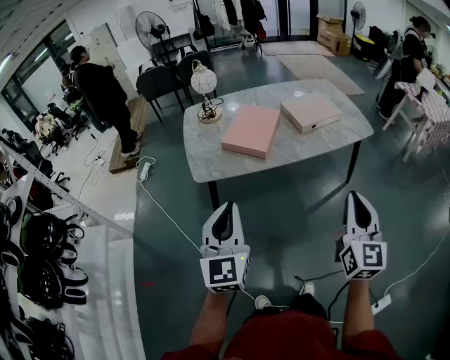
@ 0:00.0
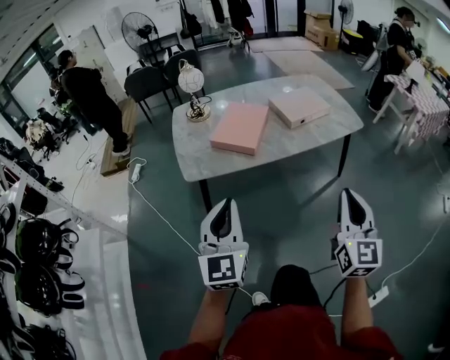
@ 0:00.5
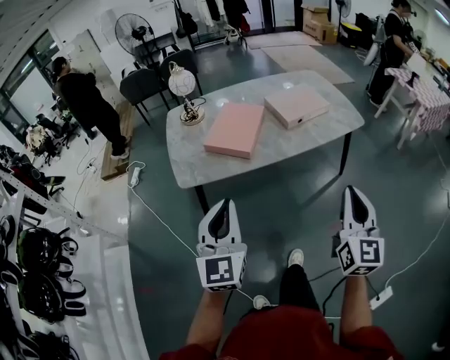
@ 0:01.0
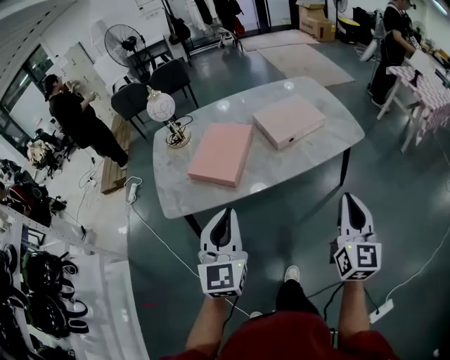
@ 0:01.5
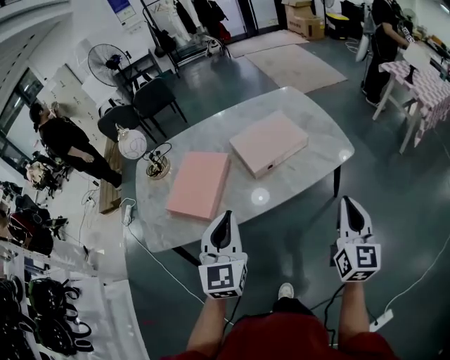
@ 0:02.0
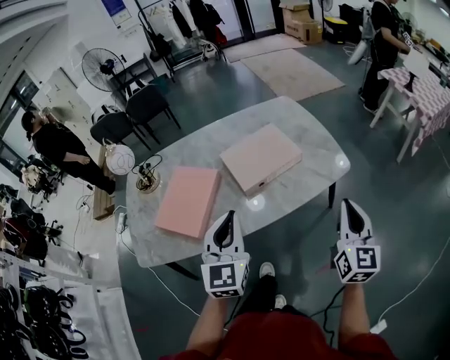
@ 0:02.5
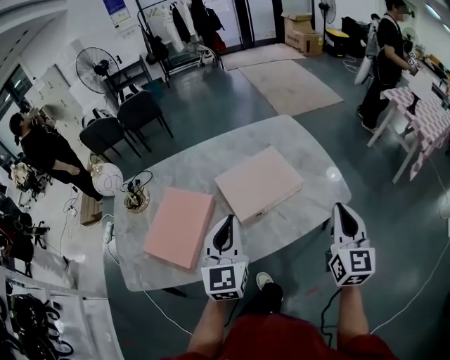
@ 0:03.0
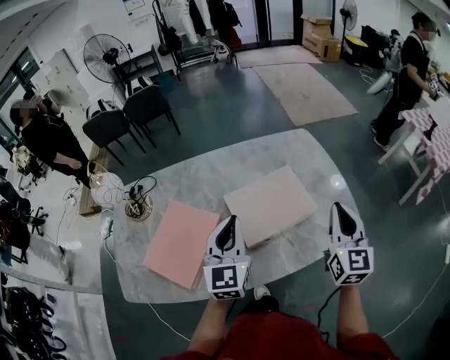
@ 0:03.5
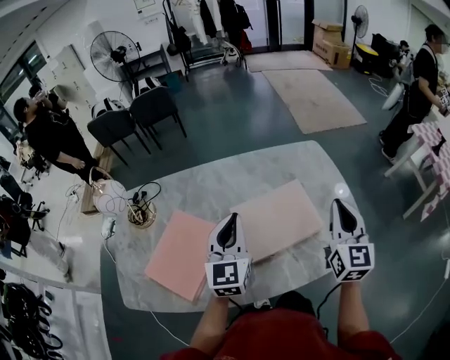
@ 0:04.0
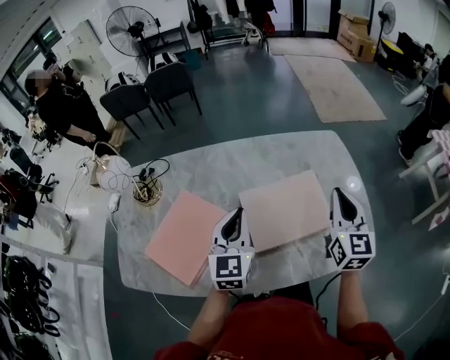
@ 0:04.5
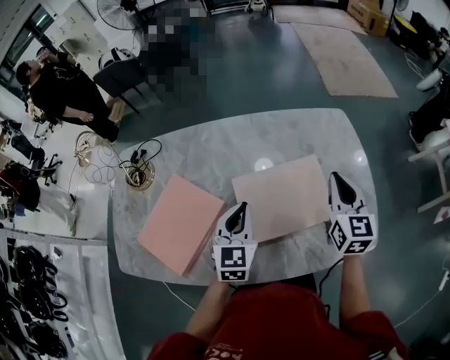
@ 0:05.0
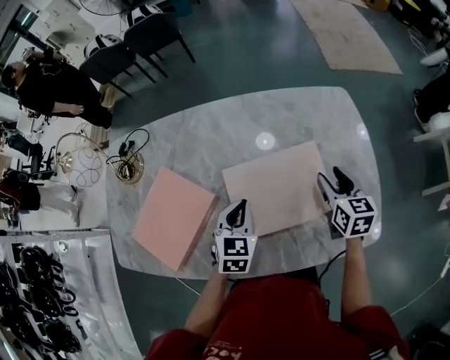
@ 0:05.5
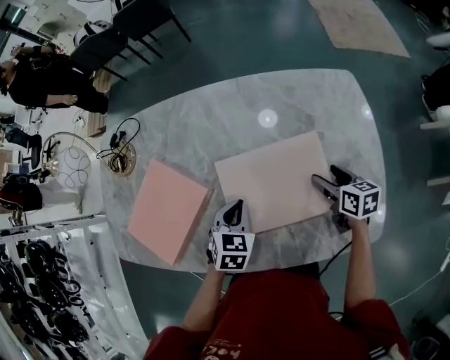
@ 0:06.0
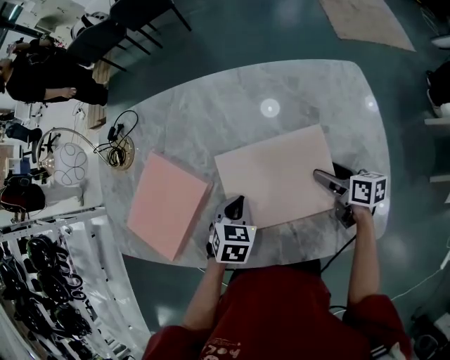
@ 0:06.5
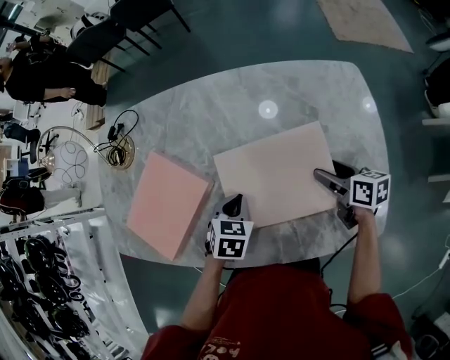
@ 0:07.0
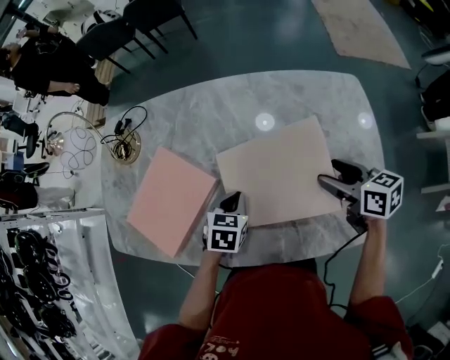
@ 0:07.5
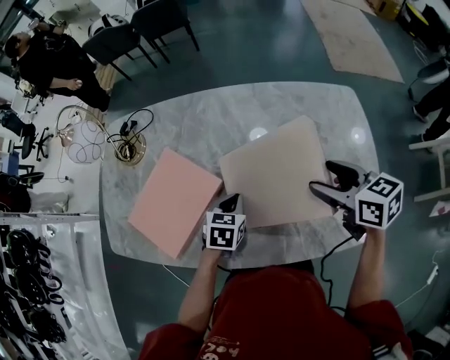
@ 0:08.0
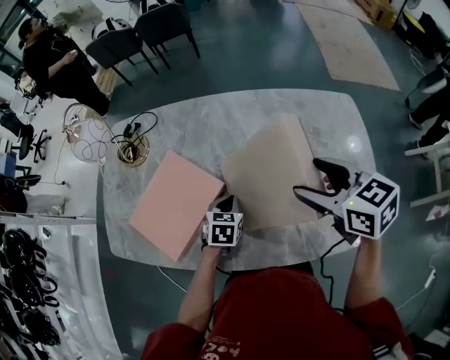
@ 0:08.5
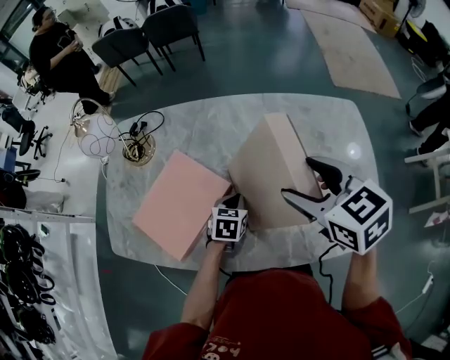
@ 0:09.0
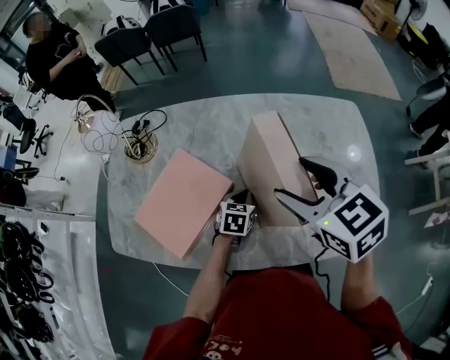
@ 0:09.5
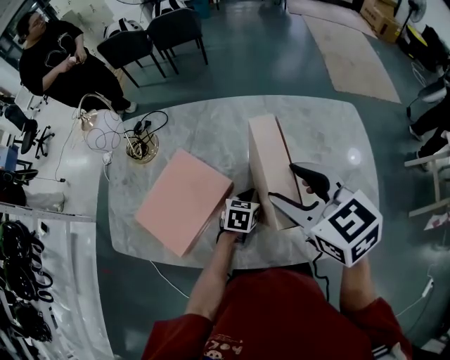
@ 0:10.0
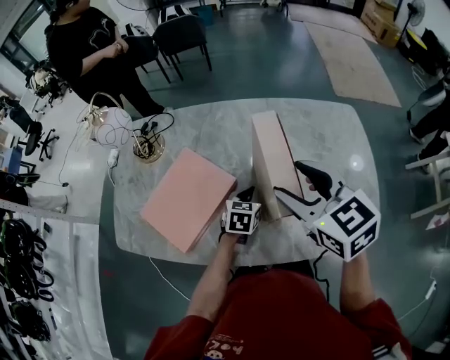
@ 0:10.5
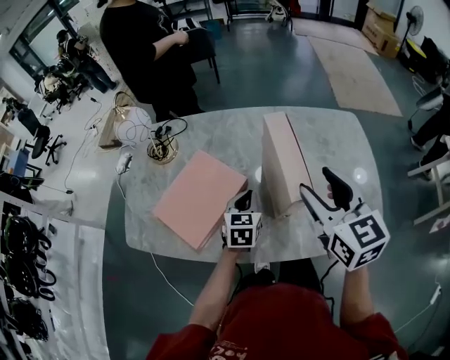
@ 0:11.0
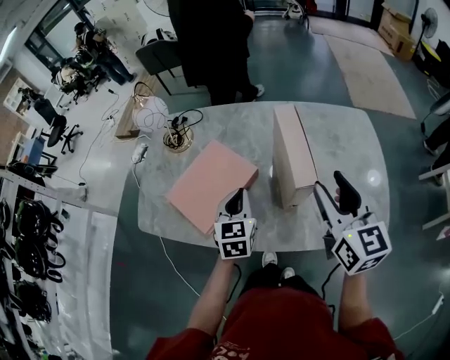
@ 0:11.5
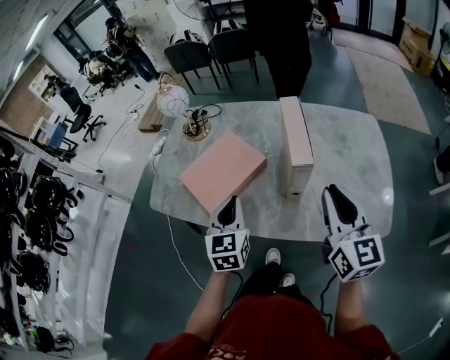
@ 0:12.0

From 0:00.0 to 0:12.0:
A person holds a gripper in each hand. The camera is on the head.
From 0:00.0 to 0:02.0: Both grippers move forward and to the right, roughly 40 cm.
From 0:02.0 to 0:04.0: Both grippers move forward, some 40 cm.
From 0:04.0 to 0:06.0: The right gripper is displaced downward and forward by some 35 cm, points its fingers roughly 40 degrees further downward, and opens its fingers; the left gripper shifts roughly 25 cm downward, and points its fingers roughly 50 degrees further downward.
From 0:06.0 to 0:08.0: The left gripper heads to the left, covering approximately 5 cm, while the right gripper shifts about 20 cm upward and to the left, and changes its angle by some 20 degrees.
From 0:08.0 to 0:10.0: The right gripper goes some 20 cm to the left and upward, and turns by about 20 degrees.
From 0:10.0 to 0:12.0: The right gripper heads backward, covering some 20 cm, swivels roughly 30 degrees, and closes; the left gripper travels upward, backward and to the left by roughly 35 cm, and swivels some 40 degrees.

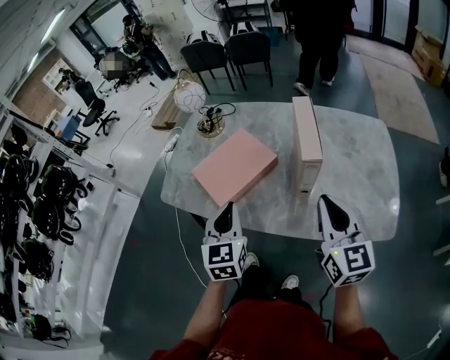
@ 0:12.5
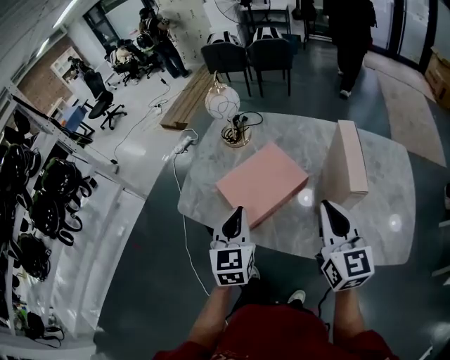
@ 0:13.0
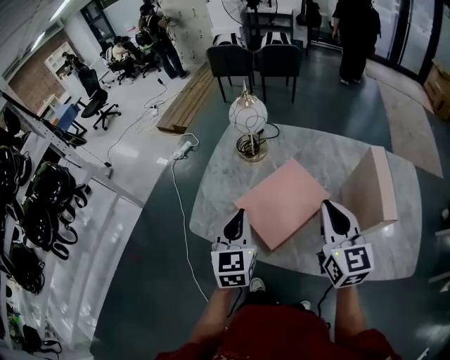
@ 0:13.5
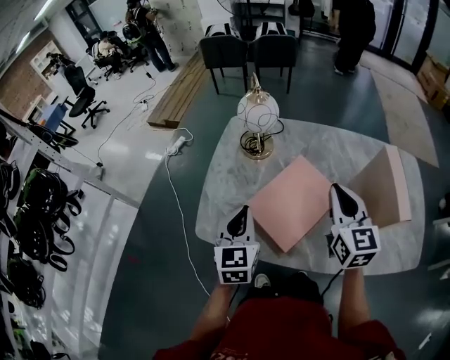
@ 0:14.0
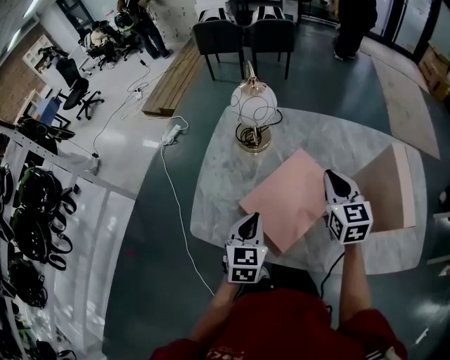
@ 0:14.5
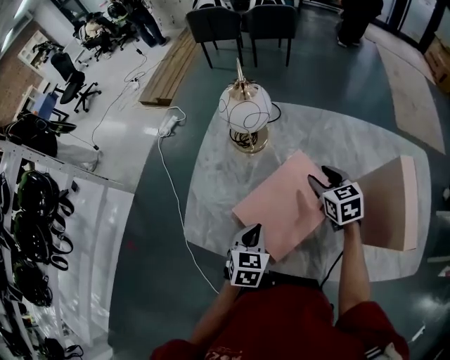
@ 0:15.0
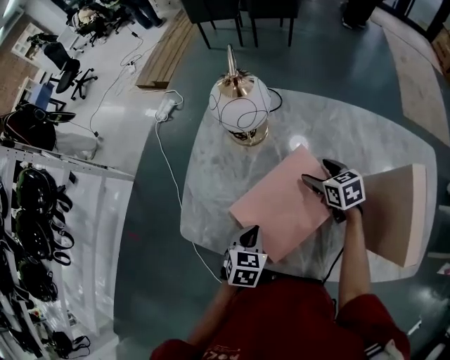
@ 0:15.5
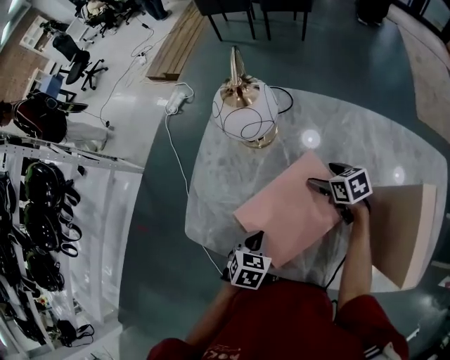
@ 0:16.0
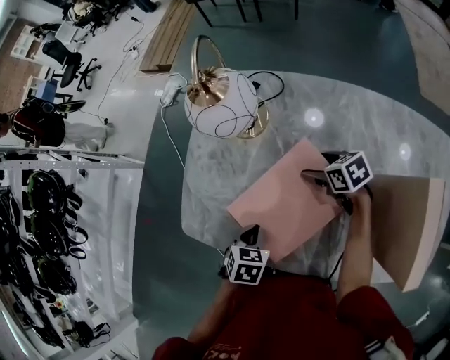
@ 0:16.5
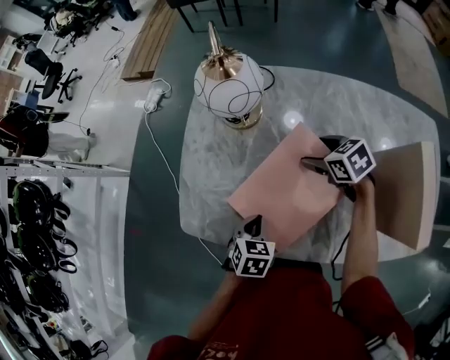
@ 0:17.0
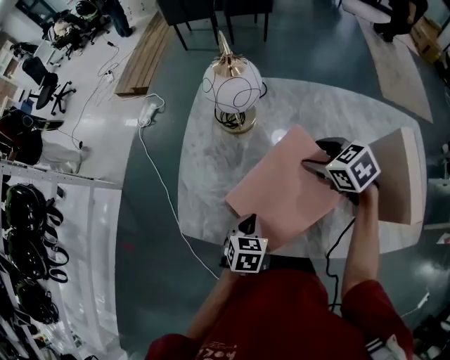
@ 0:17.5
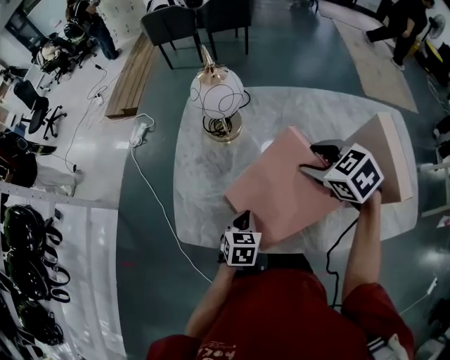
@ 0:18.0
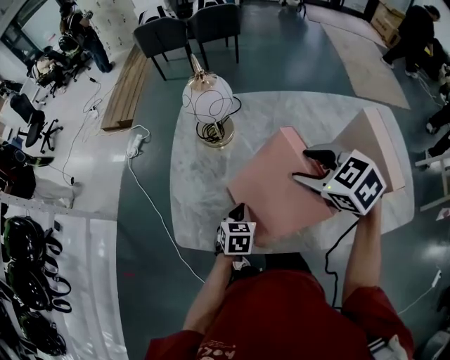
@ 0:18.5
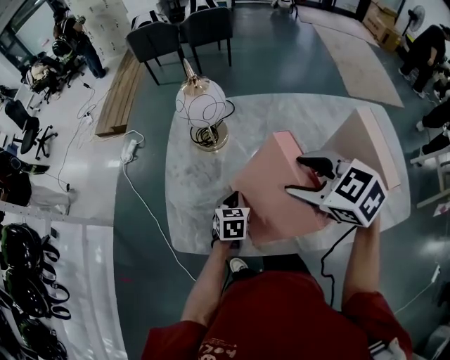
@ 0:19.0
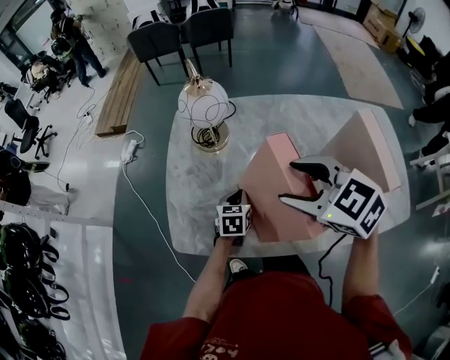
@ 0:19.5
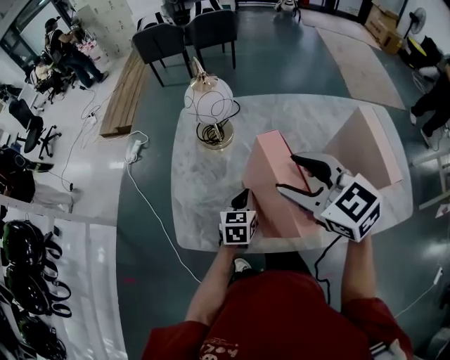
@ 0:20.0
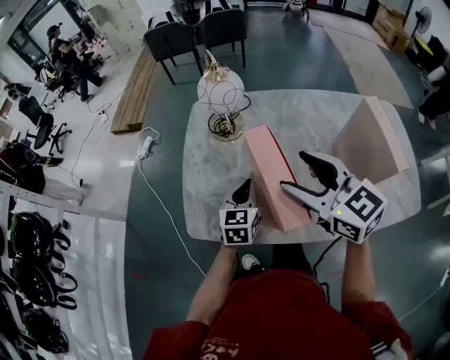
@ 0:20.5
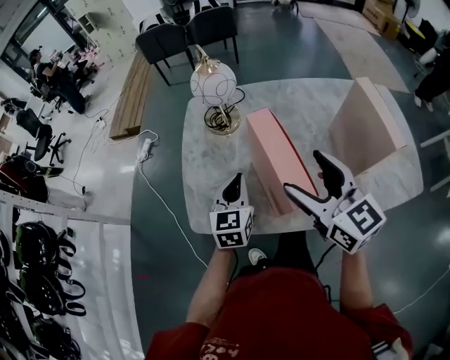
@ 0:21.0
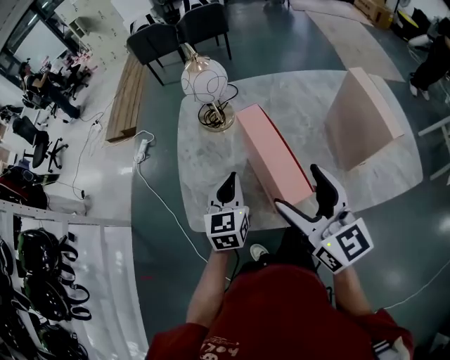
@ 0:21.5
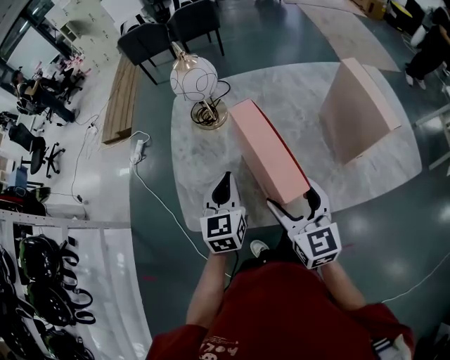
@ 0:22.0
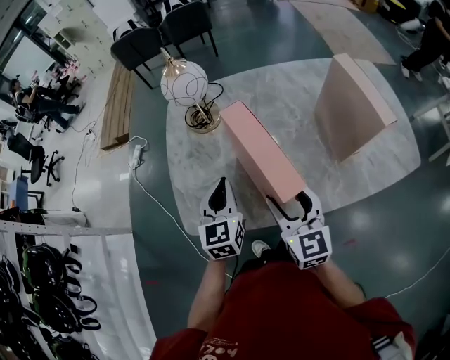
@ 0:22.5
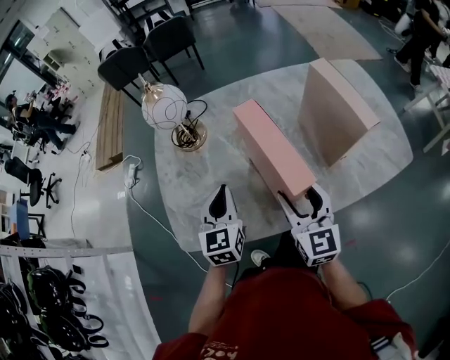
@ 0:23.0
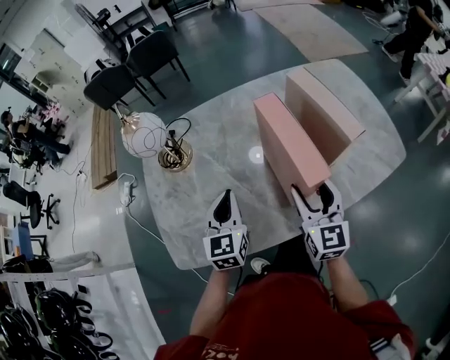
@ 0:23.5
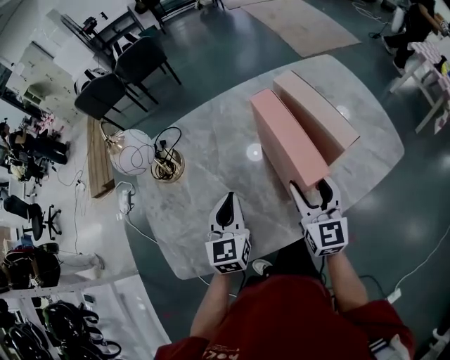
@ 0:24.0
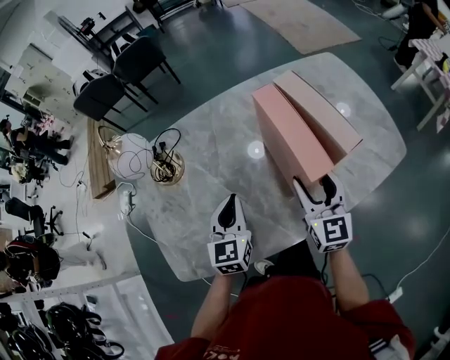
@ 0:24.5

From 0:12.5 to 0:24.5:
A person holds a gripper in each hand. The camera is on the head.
From 0:12.5 to 0:14.5: The left gripper is displaced forward, to the left and downward by some 30 cm. Meanwhile the right gripper moves forward and to the left, approximately 40 cm, and swivels about 20 degrees.
From 0:14.5 to 0:16.5: The left gripper shifts about 15 cm downward, and points its fingers approximately 40 degrees further downward. Meanwhile the right gripper moves downward and forward, approximately 25 cm, turns by roughly 50 degrees, and opens up.
From 0:16.5 to 0:18.5: The right gripper shifts some 30 cm upward and backward, and rotates approximately 30 degrees; the left gripper changes its angle by roughly 20 degrees.
From 0:18.5 to 0:20.5: The right gripper is displaced to the left, upward and backward by approximately 10 cm, and angles its fingers upward, by roughly 30 degrees. The left gripper goes some 10 cm upward, and swivels some 20 degrees.
From 0:20.5 to 0:22.5: The right gripper travels downward and backward by some 15 cm, and rotates some 30 degrees. The left gripper moves some 5 cm.
From 0:22.5 to 0:24.5: Both grippers travel together to the right and forward, approximately 20 cm. The right gripper turns by about 20 degrees.

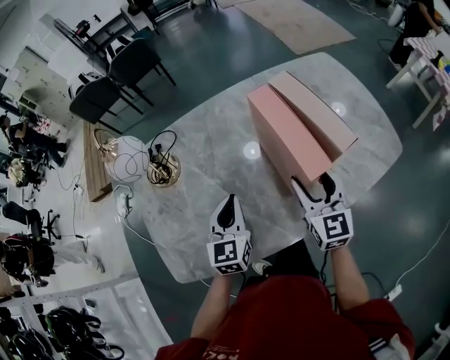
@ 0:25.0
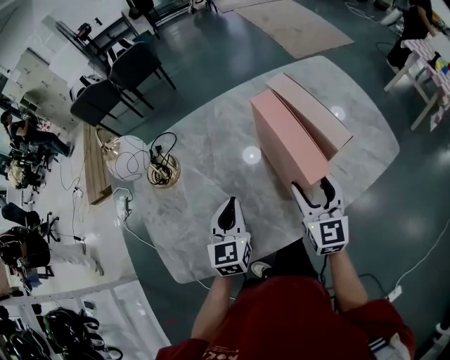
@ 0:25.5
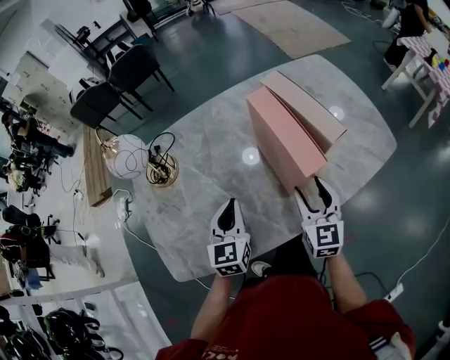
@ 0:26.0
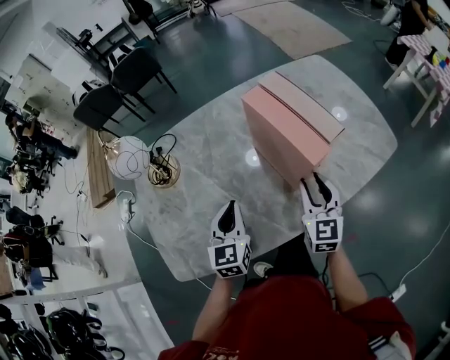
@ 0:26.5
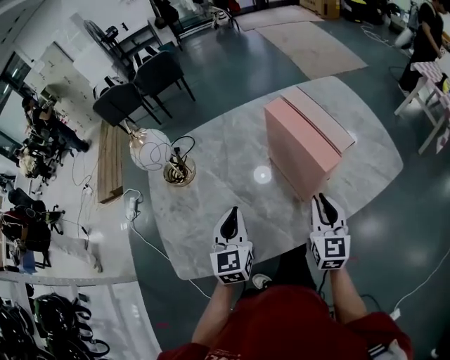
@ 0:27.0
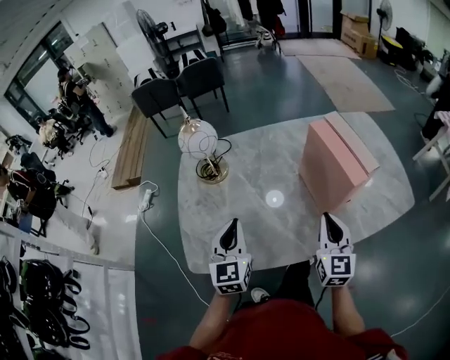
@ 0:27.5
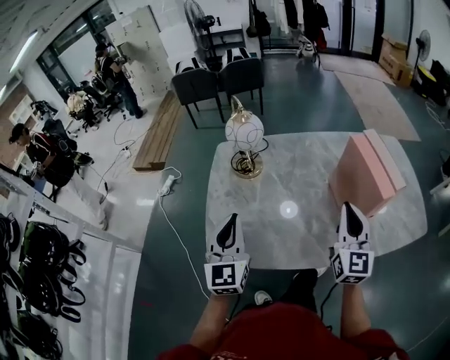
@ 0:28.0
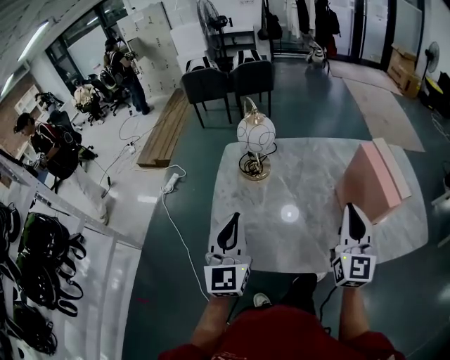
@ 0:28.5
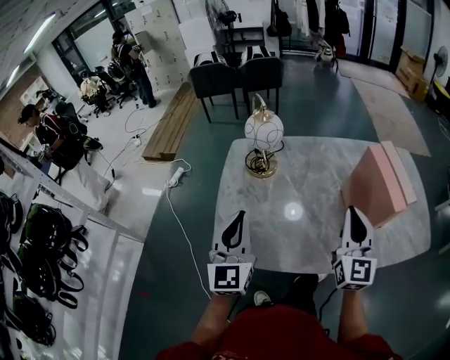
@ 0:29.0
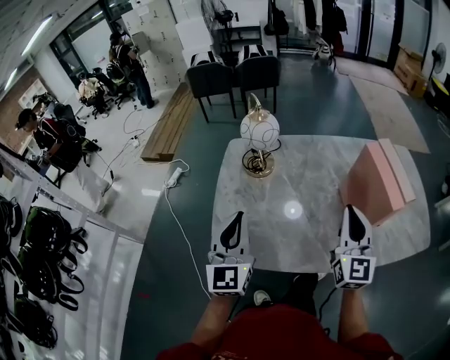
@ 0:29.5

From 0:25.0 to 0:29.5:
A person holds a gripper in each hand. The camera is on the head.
From 0:25.0 to 0:27.0: Both grippers move backward, approximately 5 cm. The right gripper closes its fingers.
From 0:27.0 to 0:29.5: The grippers both shift to the left and upward by approximately 25 cm. The left gripper rotates some 30 degrees; the right gripper turns by roughly 20 degrees.
